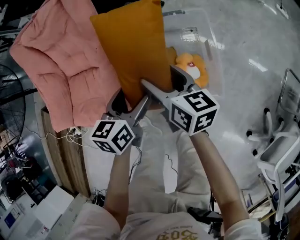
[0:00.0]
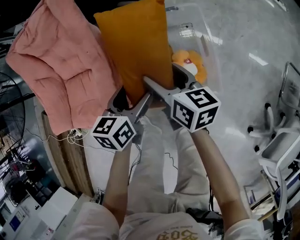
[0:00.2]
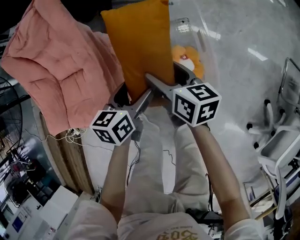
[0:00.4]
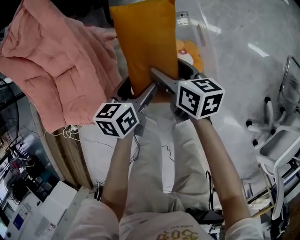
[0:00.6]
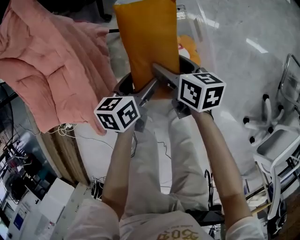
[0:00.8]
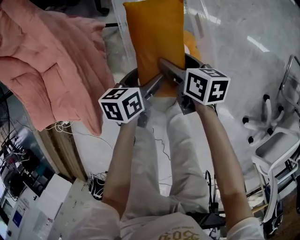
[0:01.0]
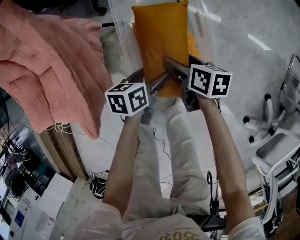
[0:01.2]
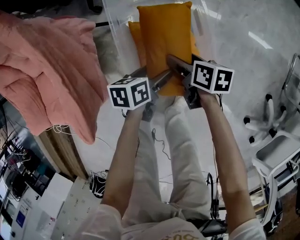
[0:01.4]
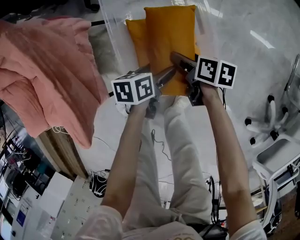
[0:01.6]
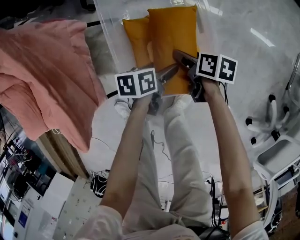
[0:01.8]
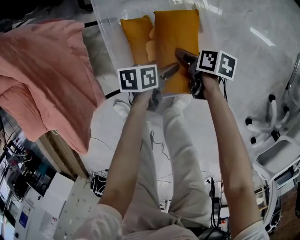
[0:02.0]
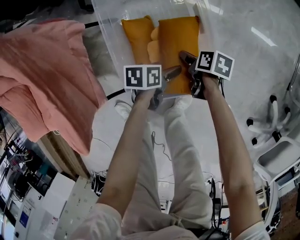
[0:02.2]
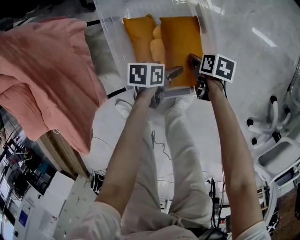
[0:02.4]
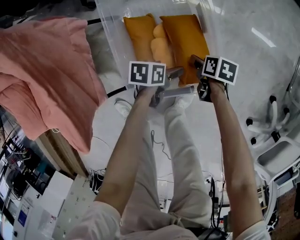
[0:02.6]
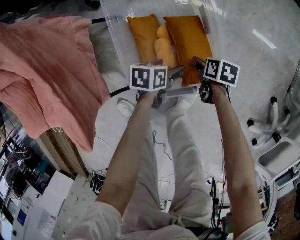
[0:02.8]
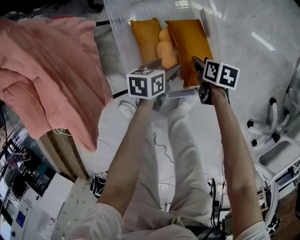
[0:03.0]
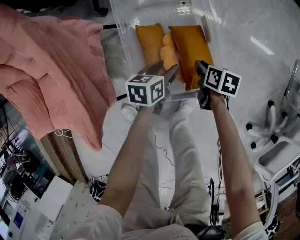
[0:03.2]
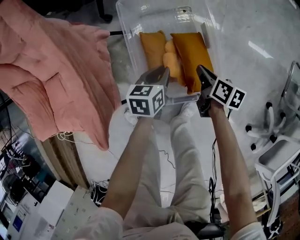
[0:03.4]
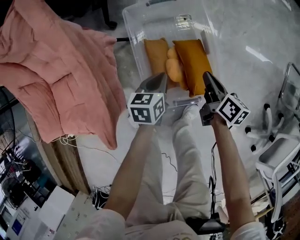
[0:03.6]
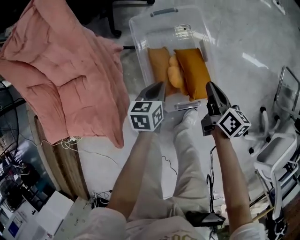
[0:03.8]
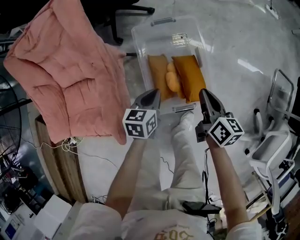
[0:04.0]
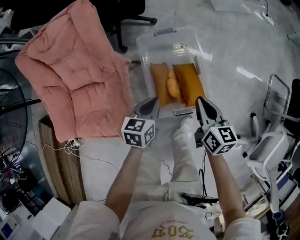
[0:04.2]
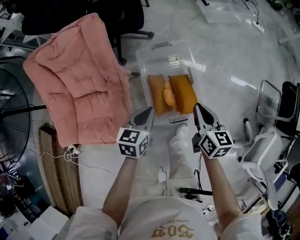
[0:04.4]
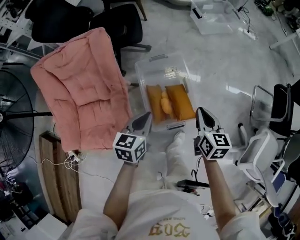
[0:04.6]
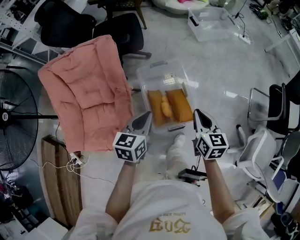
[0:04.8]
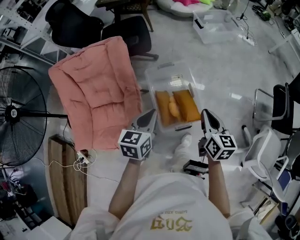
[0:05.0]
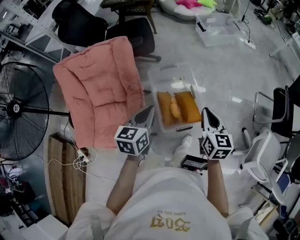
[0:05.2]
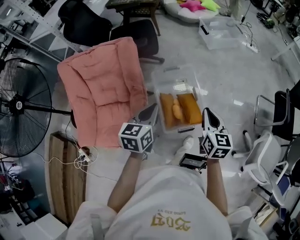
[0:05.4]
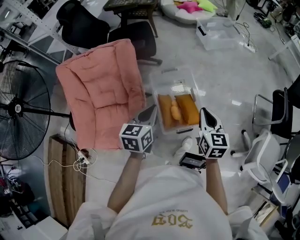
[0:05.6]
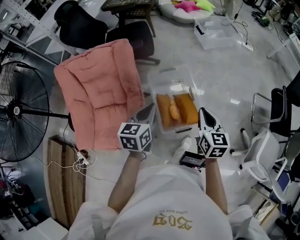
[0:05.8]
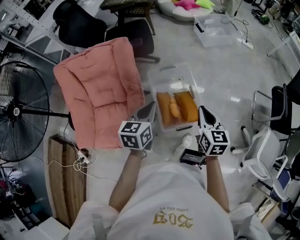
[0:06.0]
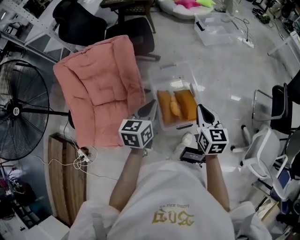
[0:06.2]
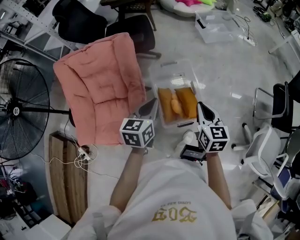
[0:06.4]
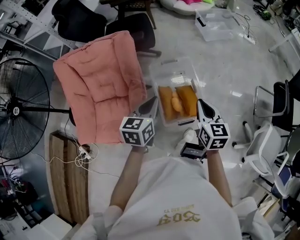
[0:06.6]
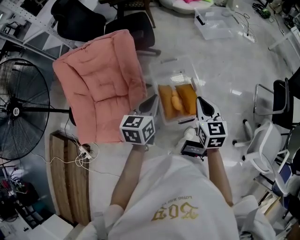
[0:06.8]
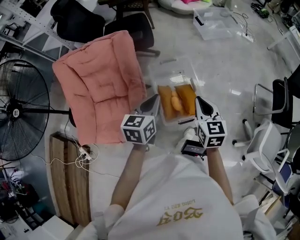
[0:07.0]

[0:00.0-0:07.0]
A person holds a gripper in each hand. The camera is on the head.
0:00.0 to 0:01.4: Both grippers move downward and to the right, about 35 cm. The right gripper changes its angle by approximately 30 degrees, while the left gripper turns by about 30 degrees.
0:01.4 to 0:02.8: The grippers both shift downward by some 10 cm. The right gripper changes its angle by approximately 20 degrees.
0:02.8 to 0:04.2: The two grippers go roughly 40 cm upward. The right gripper points its fingers some 40 degrees further upward, and closes its fingers; the left gripper rotates some 30 degrees, and closes.
0:04.2 to 0:05.6: The two grippers go about 25 cm upward. The right gripper changes its angle by approximately 20 degrees.
0:05.6 to 0:07.0: The grippers make only small movements.

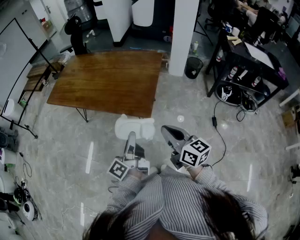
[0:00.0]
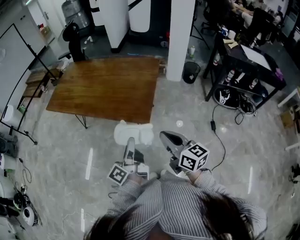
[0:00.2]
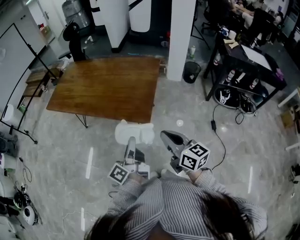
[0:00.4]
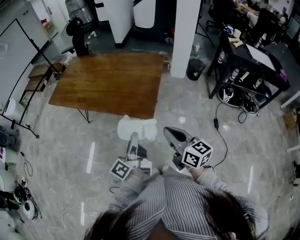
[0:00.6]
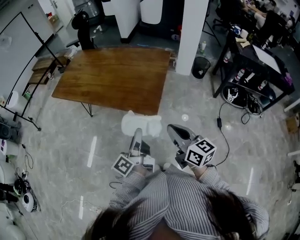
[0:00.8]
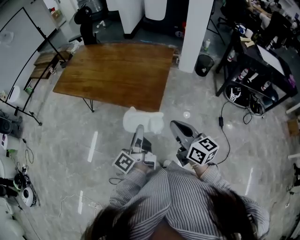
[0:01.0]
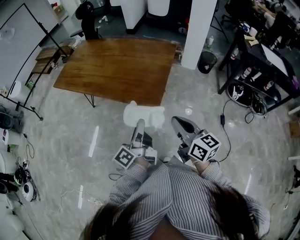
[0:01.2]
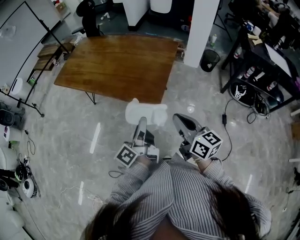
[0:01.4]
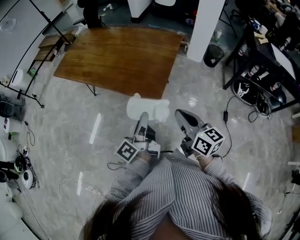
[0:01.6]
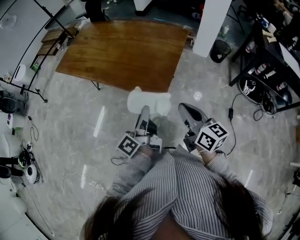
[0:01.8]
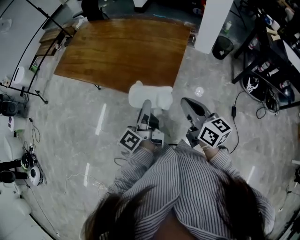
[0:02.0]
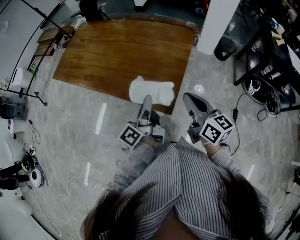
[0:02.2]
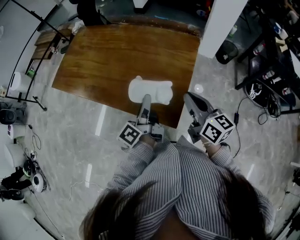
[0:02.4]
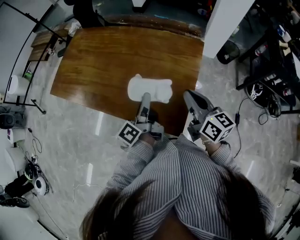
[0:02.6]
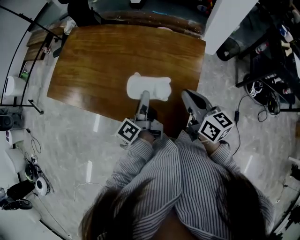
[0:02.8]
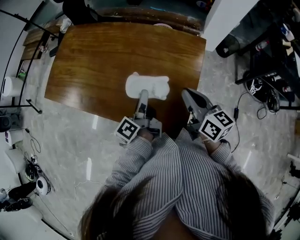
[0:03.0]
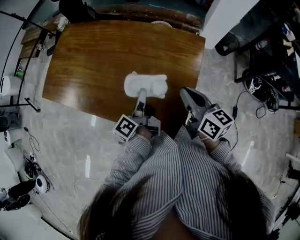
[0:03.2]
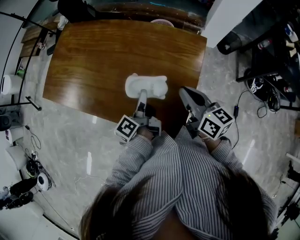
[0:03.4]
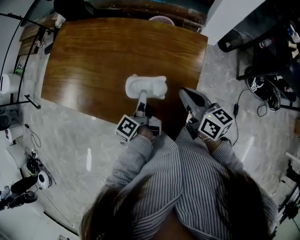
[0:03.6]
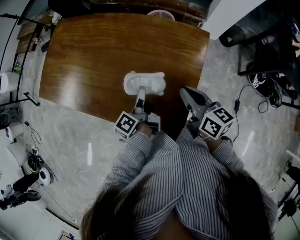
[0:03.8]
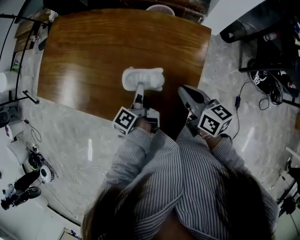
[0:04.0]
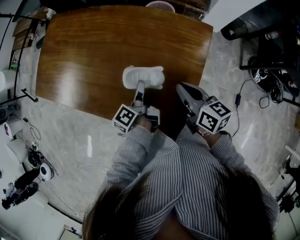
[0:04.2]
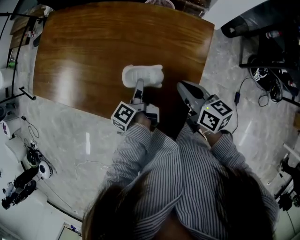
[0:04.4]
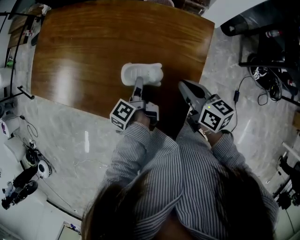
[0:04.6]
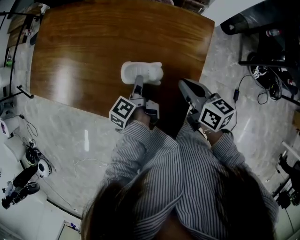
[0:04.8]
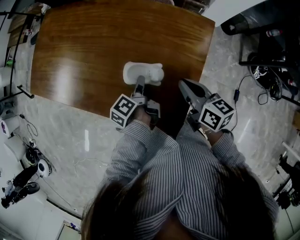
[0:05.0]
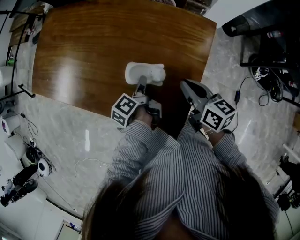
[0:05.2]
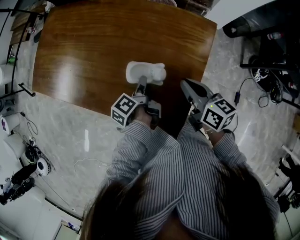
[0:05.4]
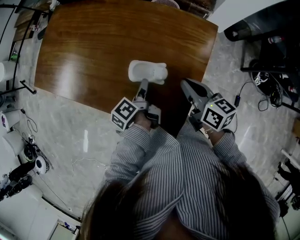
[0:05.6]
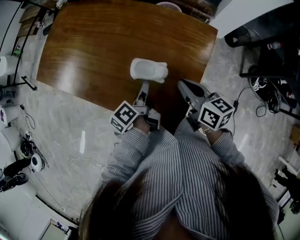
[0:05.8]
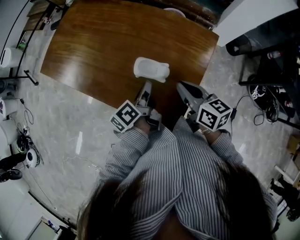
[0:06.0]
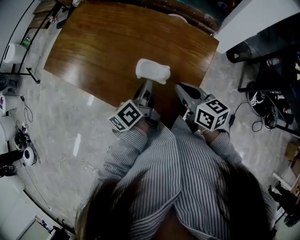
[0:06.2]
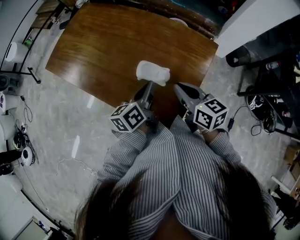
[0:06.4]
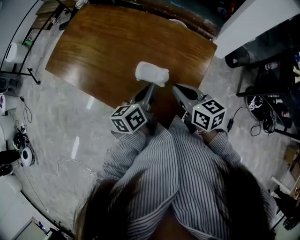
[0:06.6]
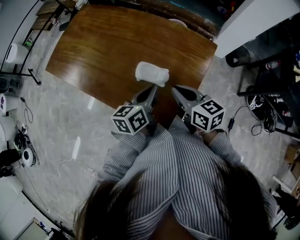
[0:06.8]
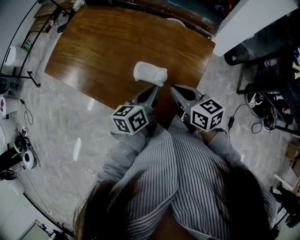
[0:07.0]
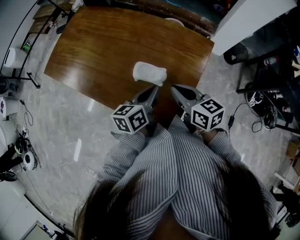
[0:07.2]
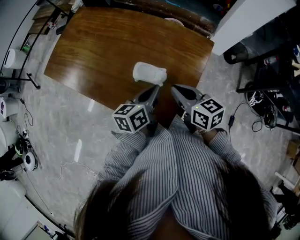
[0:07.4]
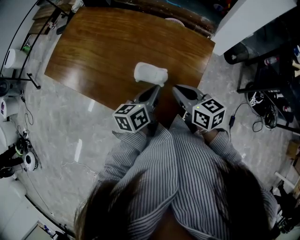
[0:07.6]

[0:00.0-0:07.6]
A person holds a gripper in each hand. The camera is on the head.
0:00.0 to 0:01.6: The right gripper moves some 5 cm. Meanwhile the left gripper moves roughly 5 cm.
0:01.6 to 0:03.0: Both grippers move forward, approximately 35 cm.
0:03.0 to 0:04.6: The two grippers go about 10 cm downward. The left gripper changes its angle by approximately 20 degrees.
0:04.6 to 0:06.0: The left gripper goes approximately 10 cm upward, and closes, while the right gripper shifts by about 5 cm.
0:06.0 to 0:07.6: The left gripper moves about 5 cm, and changes its angle by approximately 40 degrees.

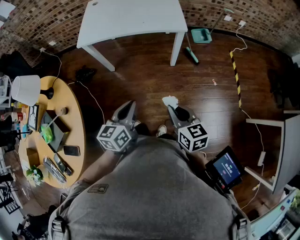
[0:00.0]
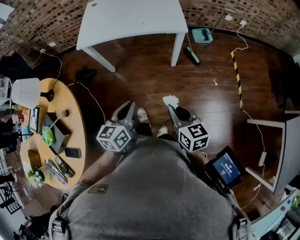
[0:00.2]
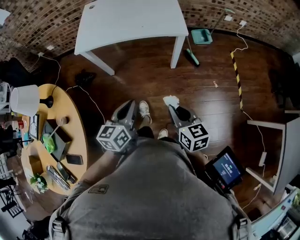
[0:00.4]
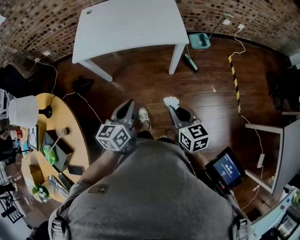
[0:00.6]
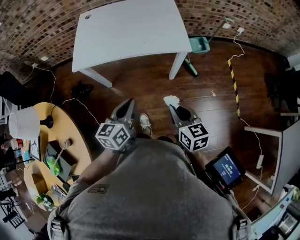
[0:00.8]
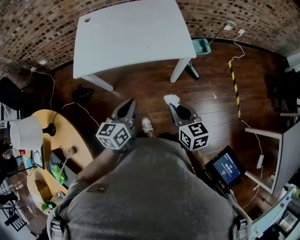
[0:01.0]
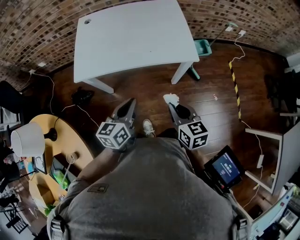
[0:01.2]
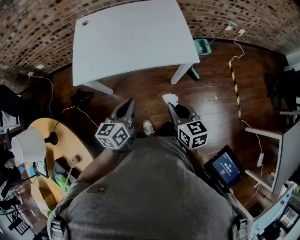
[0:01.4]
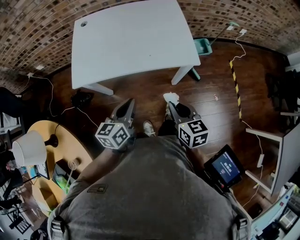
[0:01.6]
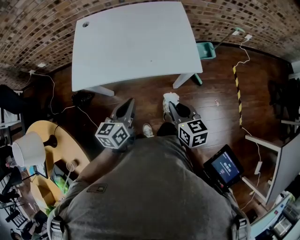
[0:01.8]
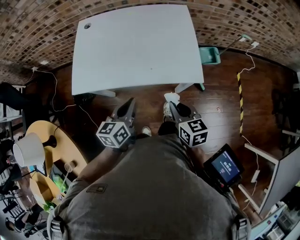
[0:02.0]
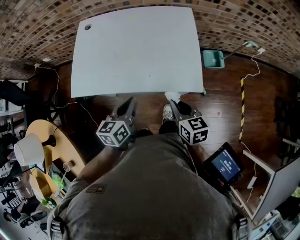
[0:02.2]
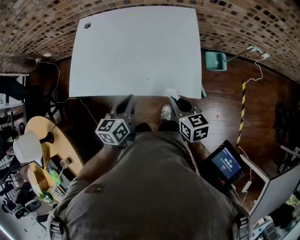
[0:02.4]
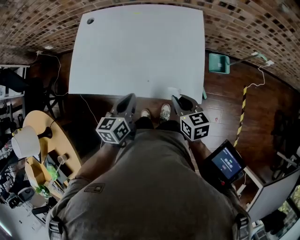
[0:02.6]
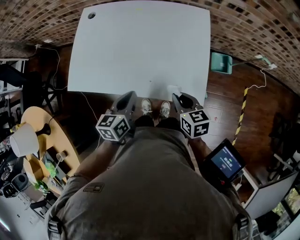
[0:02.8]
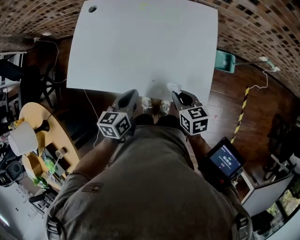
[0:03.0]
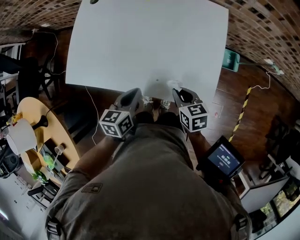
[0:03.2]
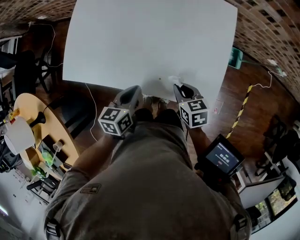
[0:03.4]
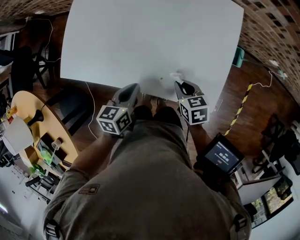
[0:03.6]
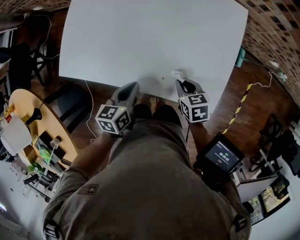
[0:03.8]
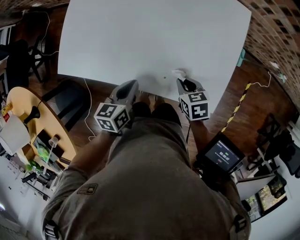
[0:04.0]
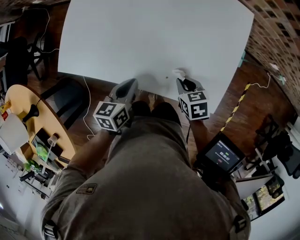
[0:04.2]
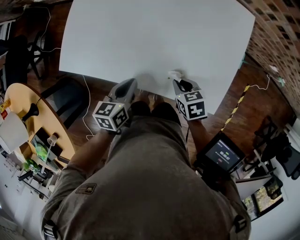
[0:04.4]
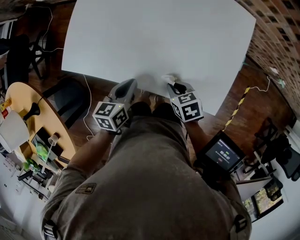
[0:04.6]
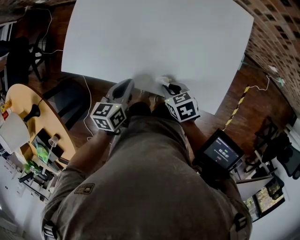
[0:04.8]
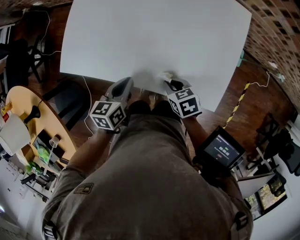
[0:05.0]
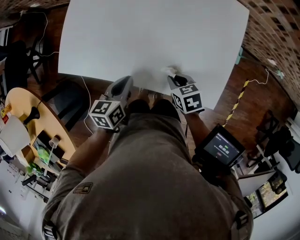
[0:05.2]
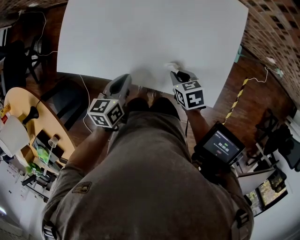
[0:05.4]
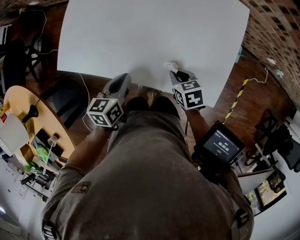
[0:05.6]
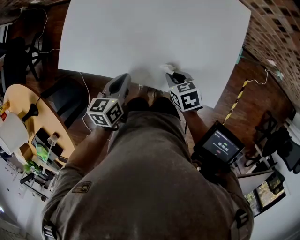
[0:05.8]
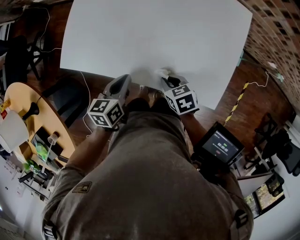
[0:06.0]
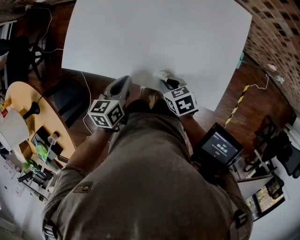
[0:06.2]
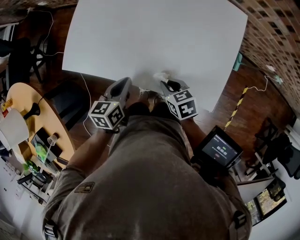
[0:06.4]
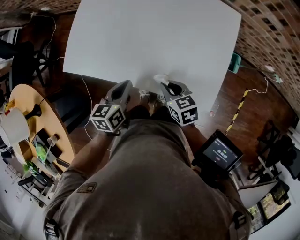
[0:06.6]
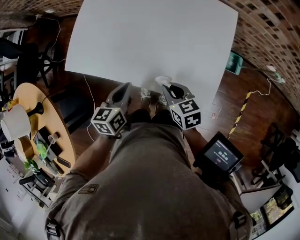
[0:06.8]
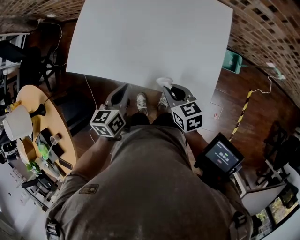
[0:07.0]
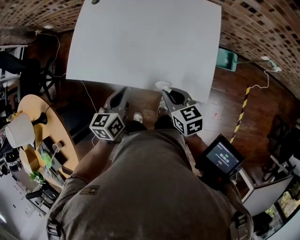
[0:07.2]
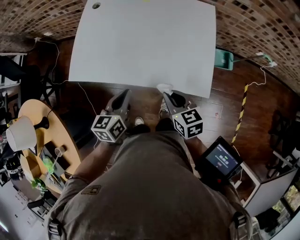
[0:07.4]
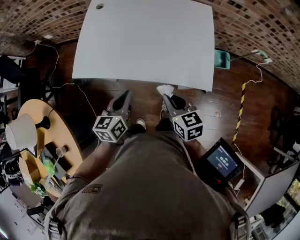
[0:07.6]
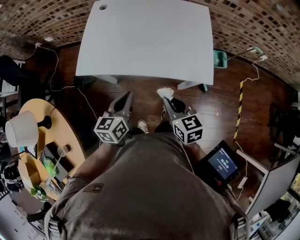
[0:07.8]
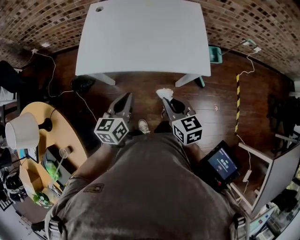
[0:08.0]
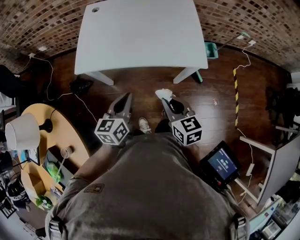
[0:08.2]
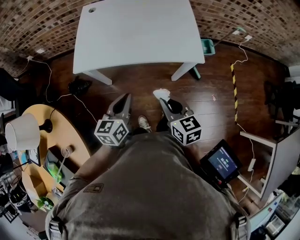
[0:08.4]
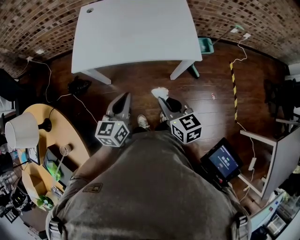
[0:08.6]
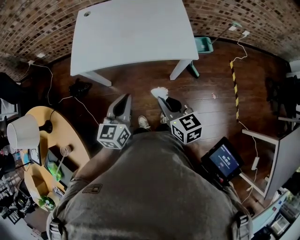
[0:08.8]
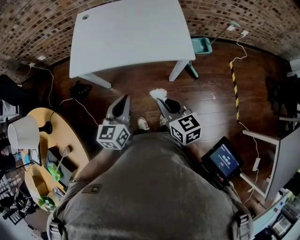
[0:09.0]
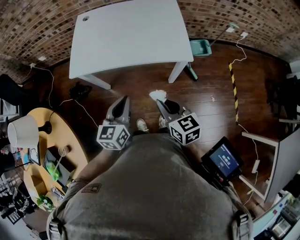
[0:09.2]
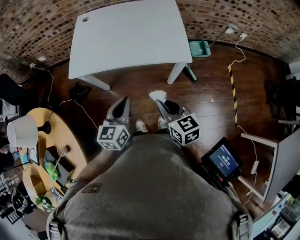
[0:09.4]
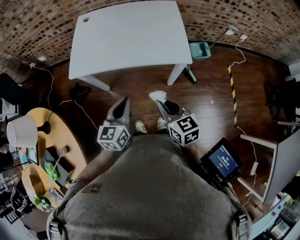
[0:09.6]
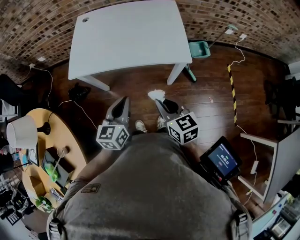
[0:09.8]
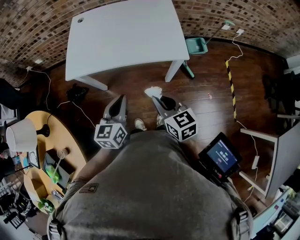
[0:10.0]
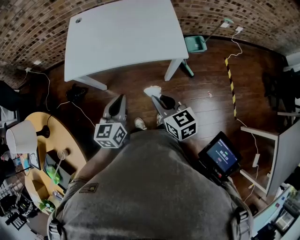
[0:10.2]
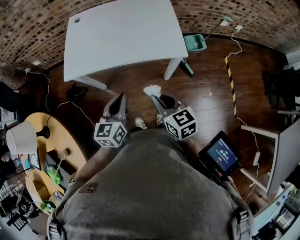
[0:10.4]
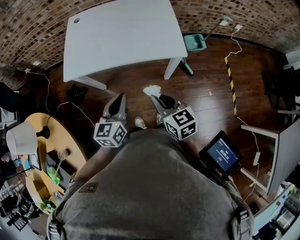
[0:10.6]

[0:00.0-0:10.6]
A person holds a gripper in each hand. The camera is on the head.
0:00.0 to 0:01.6: The two grippers go about 30 cm forward.
0:01.6 to 0:03.0: The right gripper travels forward by about 25 cm, and turns by roughly 20 degrees. Meanwhile the left gripper moves forward and to the right, some 20 cm, and turns by roughly 20 degrees.
0:03.0 to 0:04.6: Both grippers move to the left and downward, roughly 10 cm. The right gripper rotates some 30 degrees.
0:04.6 to 0:06.0: The grippers move only a little.
0:06.0 to 0:07.6: The grippers both shift upward and backward by about 15 cm. The right gripper rotates approximately 40 degrees.
0:07.6 to 0:09.0: The two grippers go approximately 15 cm backward.
0:09.0 to 0:10.6: The grippers move only a little.
